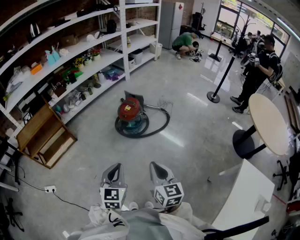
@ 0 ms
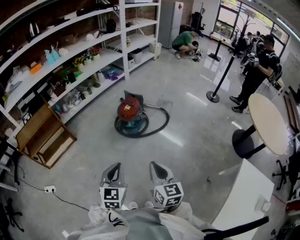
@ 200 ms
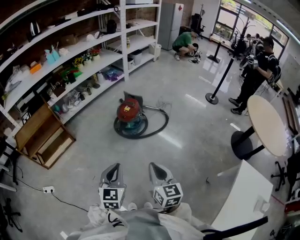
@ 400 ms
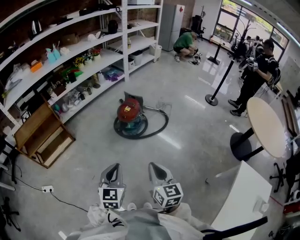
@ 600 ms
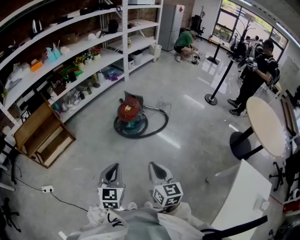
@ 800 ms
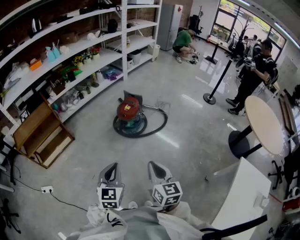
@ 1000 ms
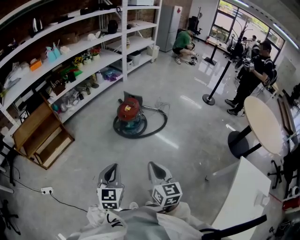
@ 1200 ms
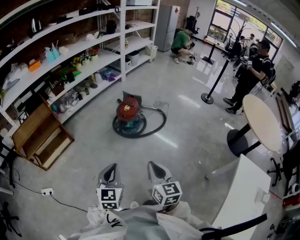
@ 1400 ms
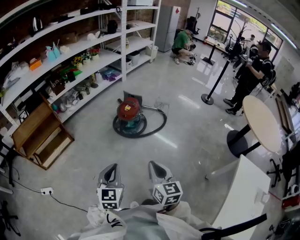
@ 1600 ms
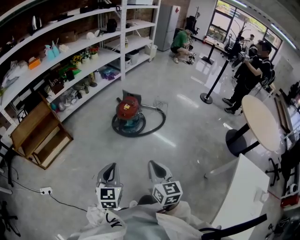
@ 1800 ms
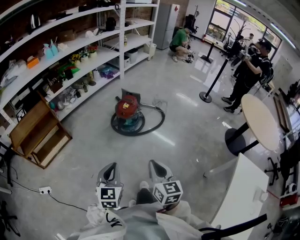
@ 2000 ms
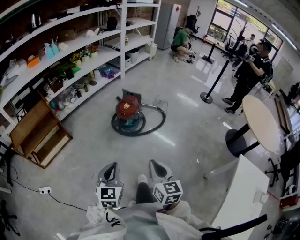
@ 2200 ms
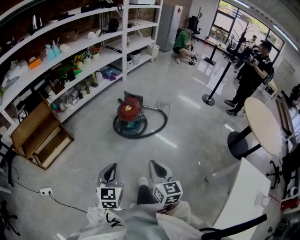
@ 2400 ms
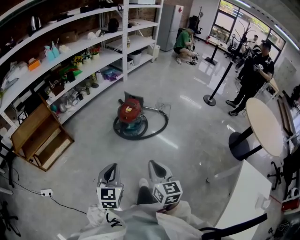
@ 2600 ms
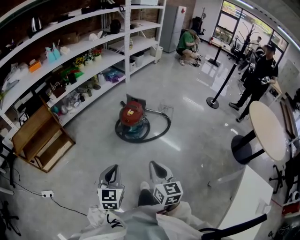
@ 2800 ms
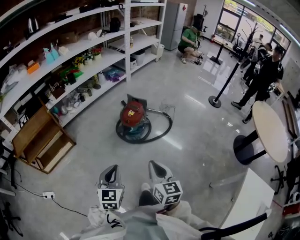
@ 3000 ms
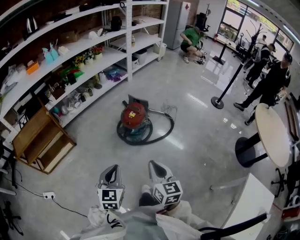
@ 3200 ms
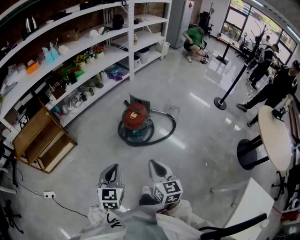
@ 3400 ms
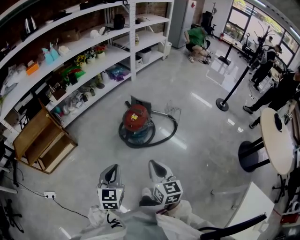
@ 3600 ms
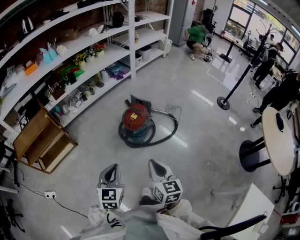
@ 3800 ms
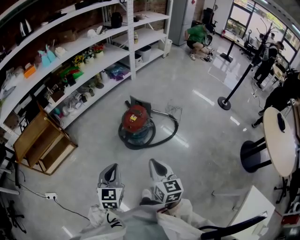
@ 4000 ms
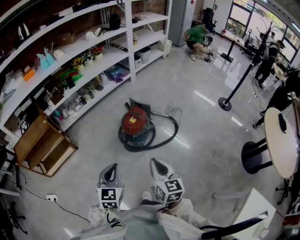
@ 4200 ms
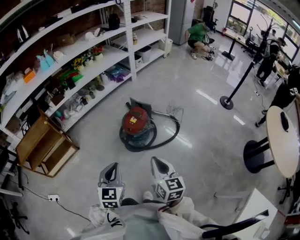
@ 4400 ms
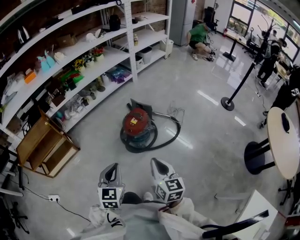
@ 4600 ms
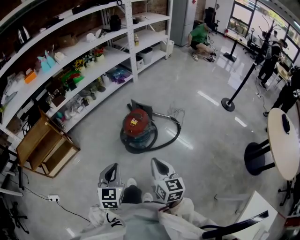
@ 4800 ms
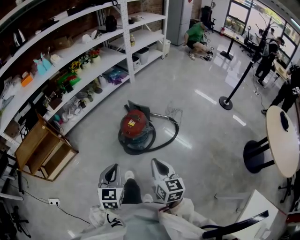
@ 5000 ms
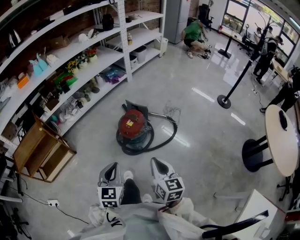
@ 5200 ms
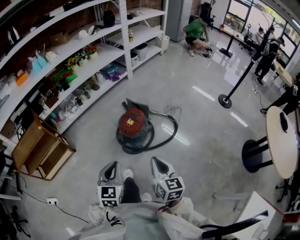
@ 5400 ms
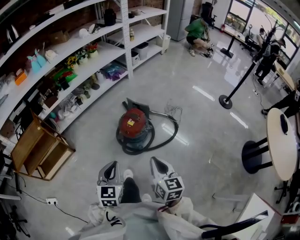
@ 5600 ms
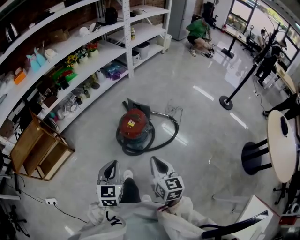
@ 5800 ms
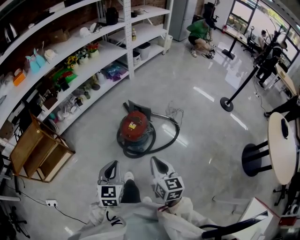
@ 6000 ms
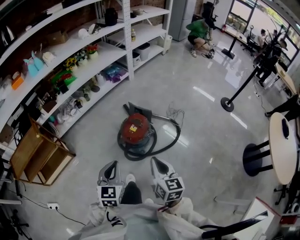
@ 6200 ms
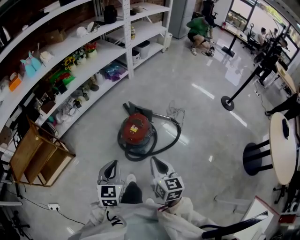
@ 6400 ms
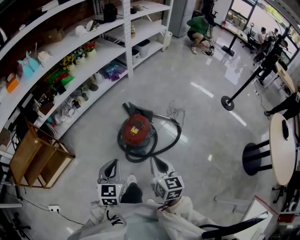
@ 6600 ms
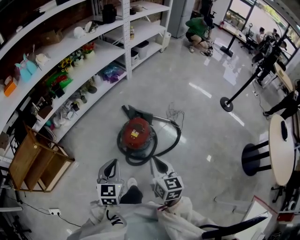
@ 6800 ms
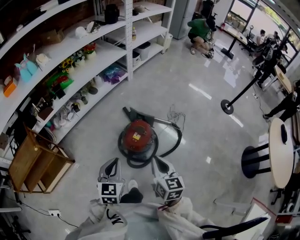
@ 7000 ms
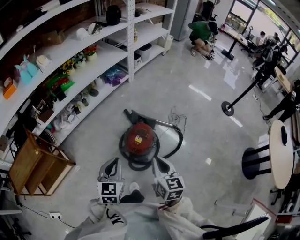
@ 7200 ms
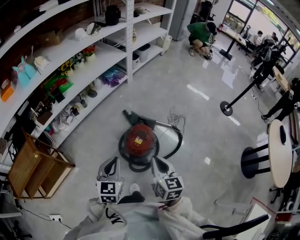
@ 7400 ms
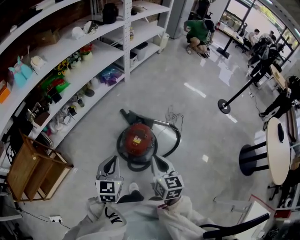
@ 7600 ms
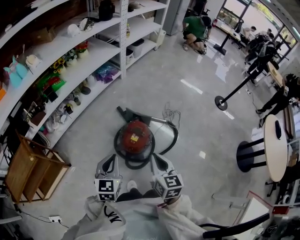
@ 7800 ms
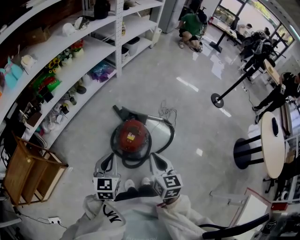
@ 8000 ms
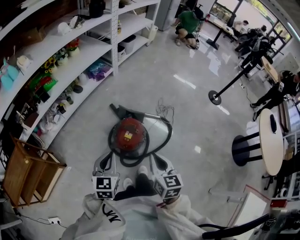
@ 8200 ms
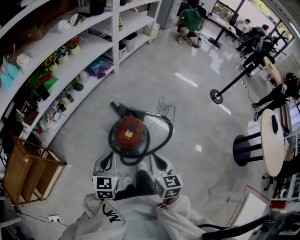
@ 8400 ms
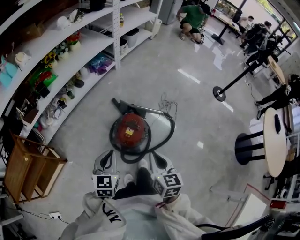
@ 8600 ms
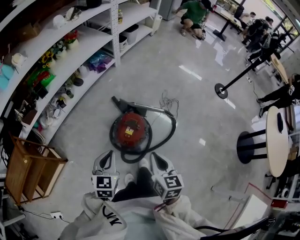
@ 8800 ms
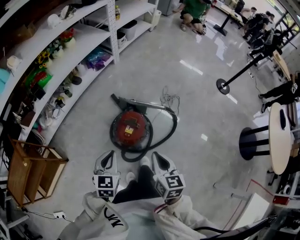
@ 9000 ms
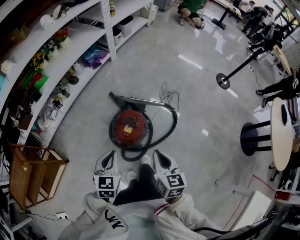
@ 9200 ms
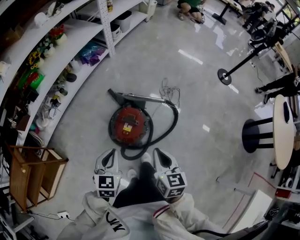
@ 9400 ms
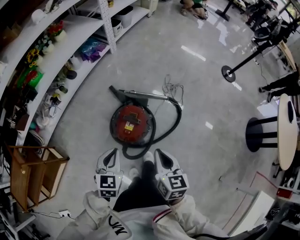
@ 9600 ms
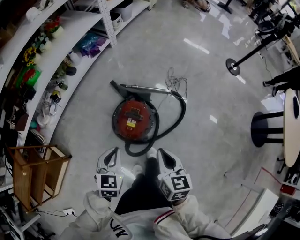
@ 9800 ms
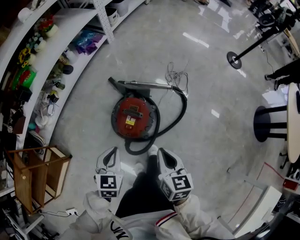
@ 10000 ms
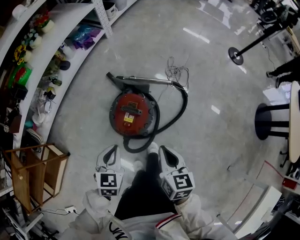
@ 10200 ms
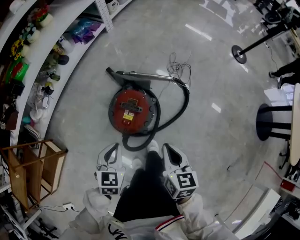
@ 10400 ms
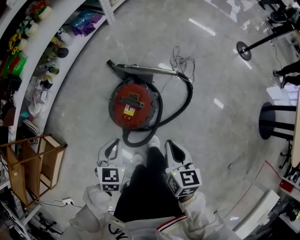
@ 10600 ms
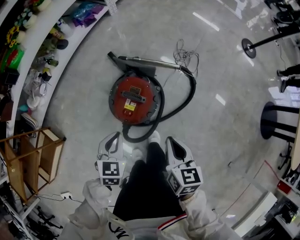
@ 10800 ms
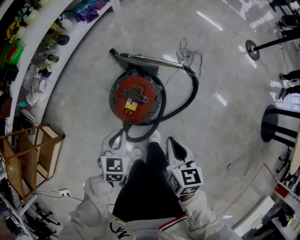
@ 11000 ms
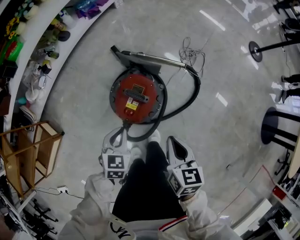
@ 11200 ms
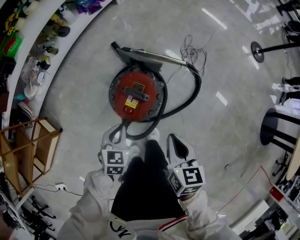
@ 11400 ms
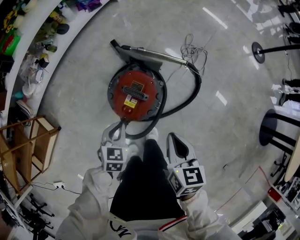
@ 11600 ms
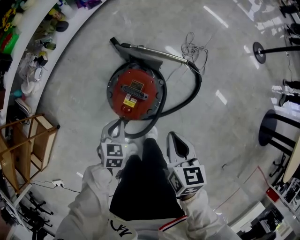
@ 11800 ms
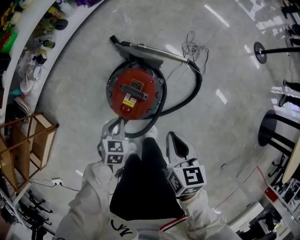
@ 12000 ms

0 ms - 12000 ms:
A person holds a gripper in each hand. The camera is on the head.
0 ms - 1600 ms: Both grippers travel together to the left, approximately 5 cm.
1600 ms - 3000 ms: Both grippers travel together forward, approximately 10 cm.
3000 ms - 4400 ms: The grippers both shift forward and to the right by roughly 15 cm.
4400 ms - 6000 ms: Both grippers move forward, some 10 cm.
6000 ms - 7600 ms: The right gripper heads forward and to the left, covering some 15 cm. The left gripper is displaced forward by roughly 20 cm.
7600 ms - 9000 ms: The right gripper travels downward and to the right by some 5 cm, while the left gripper moves downward, some 5 cm.
9000 ms - 10400 ms: The grippers both shift downward by about 15 cm.
10400 ms - 12000 ms: The right gripper heads downward, covering some 5 cm; the left gripper is displaced downward by about 15 cm.

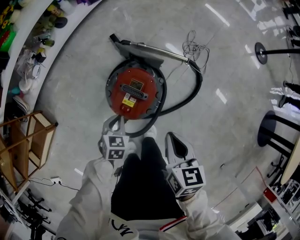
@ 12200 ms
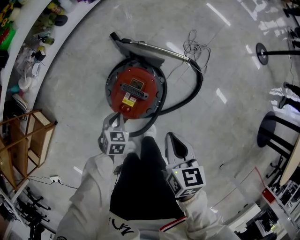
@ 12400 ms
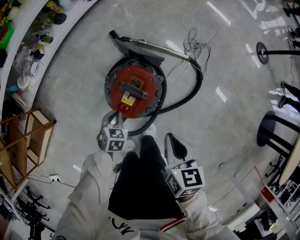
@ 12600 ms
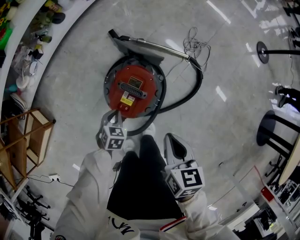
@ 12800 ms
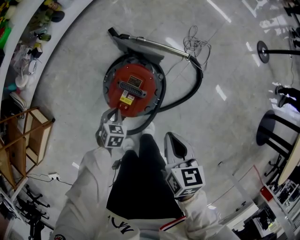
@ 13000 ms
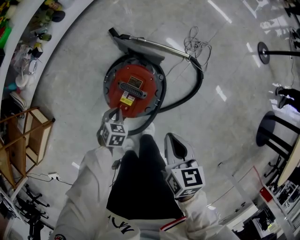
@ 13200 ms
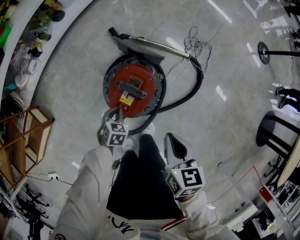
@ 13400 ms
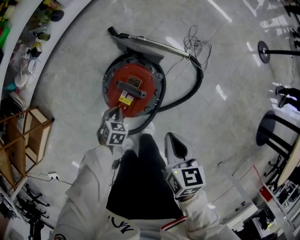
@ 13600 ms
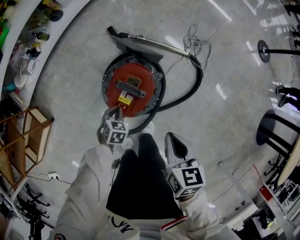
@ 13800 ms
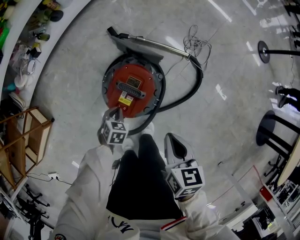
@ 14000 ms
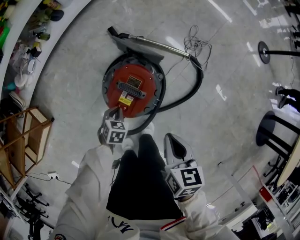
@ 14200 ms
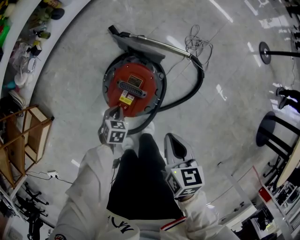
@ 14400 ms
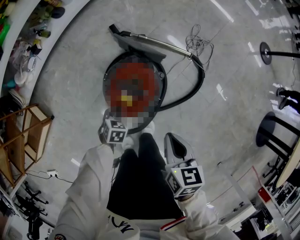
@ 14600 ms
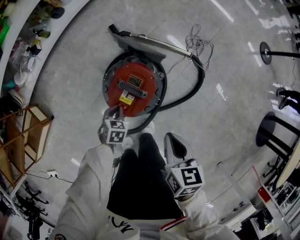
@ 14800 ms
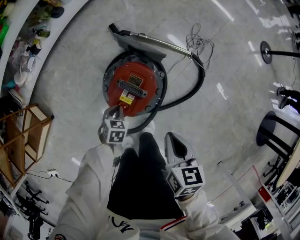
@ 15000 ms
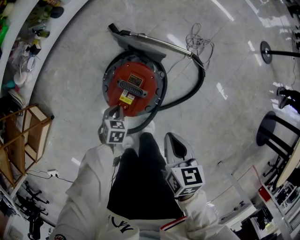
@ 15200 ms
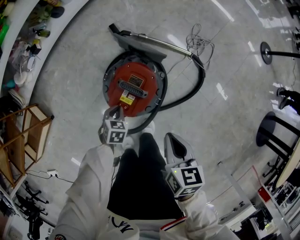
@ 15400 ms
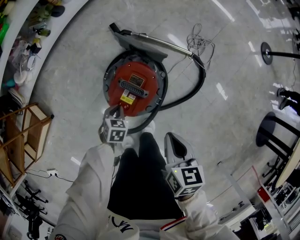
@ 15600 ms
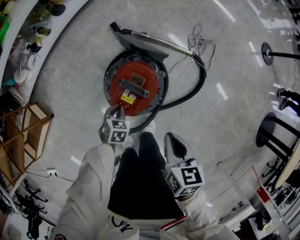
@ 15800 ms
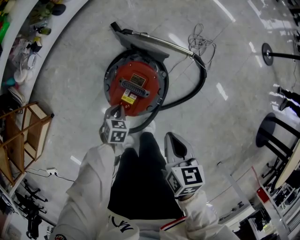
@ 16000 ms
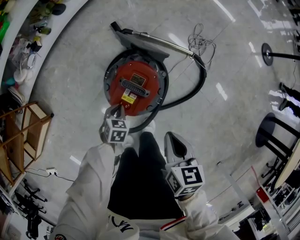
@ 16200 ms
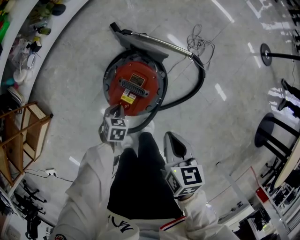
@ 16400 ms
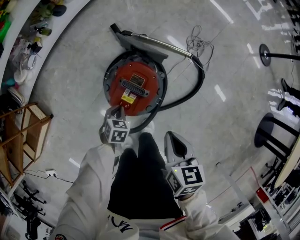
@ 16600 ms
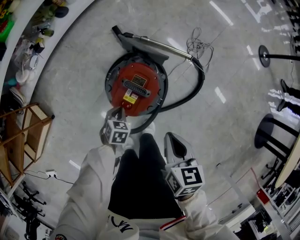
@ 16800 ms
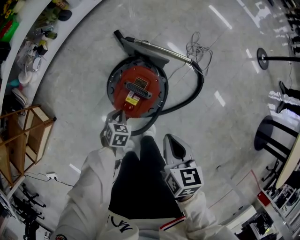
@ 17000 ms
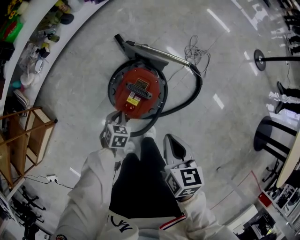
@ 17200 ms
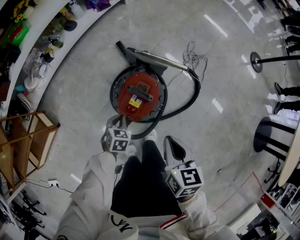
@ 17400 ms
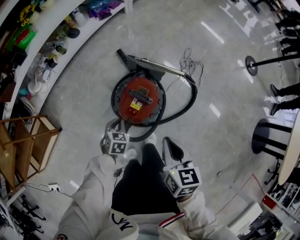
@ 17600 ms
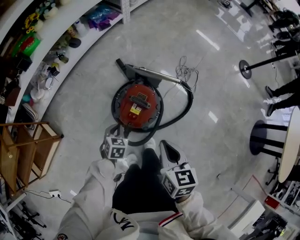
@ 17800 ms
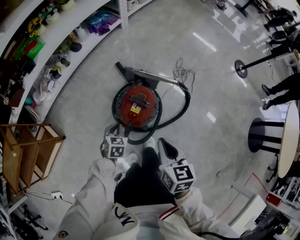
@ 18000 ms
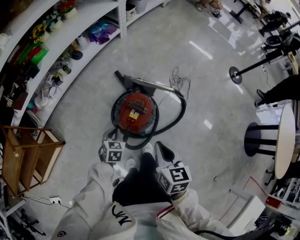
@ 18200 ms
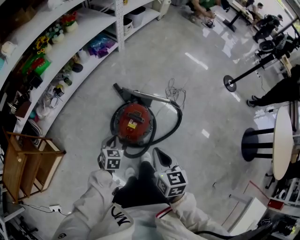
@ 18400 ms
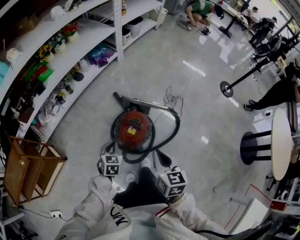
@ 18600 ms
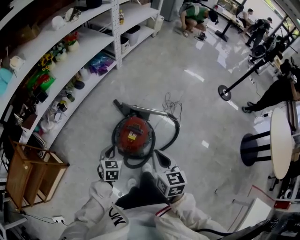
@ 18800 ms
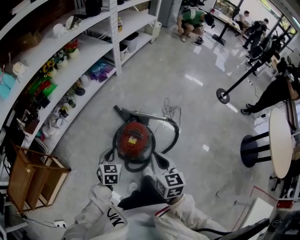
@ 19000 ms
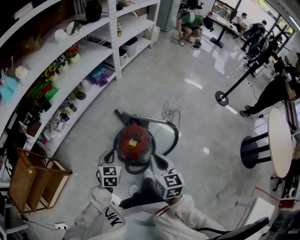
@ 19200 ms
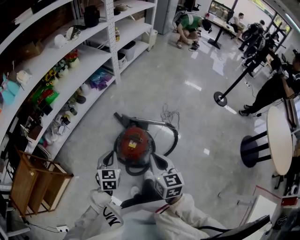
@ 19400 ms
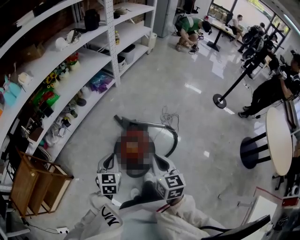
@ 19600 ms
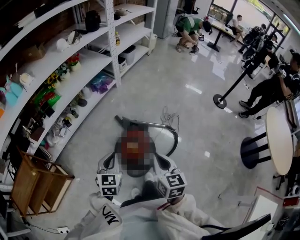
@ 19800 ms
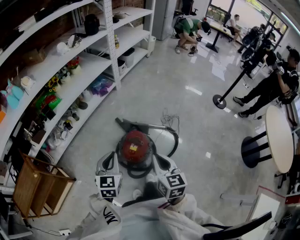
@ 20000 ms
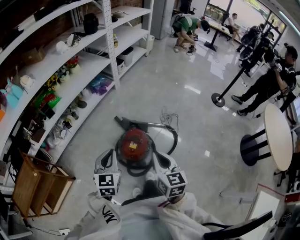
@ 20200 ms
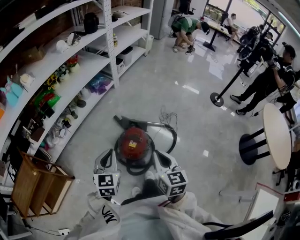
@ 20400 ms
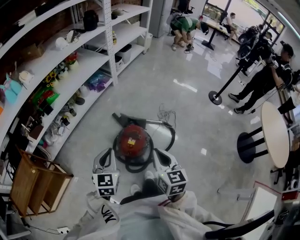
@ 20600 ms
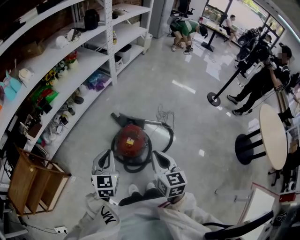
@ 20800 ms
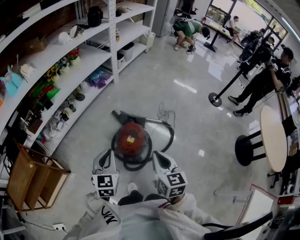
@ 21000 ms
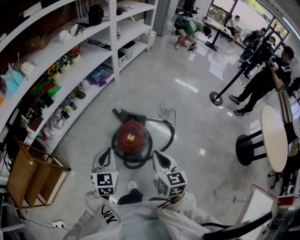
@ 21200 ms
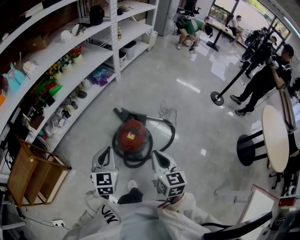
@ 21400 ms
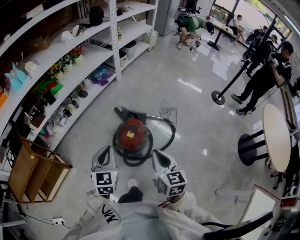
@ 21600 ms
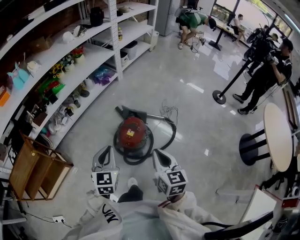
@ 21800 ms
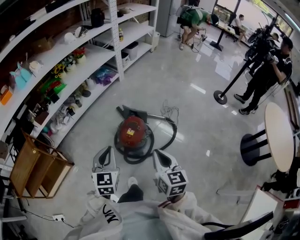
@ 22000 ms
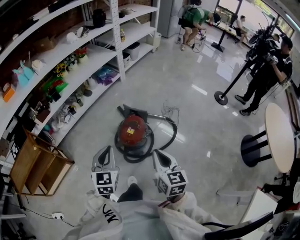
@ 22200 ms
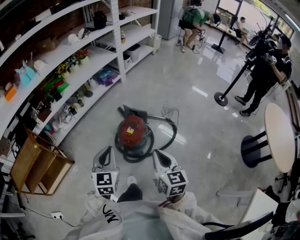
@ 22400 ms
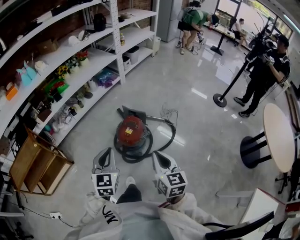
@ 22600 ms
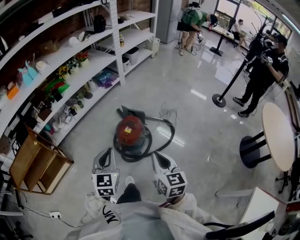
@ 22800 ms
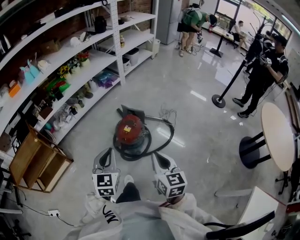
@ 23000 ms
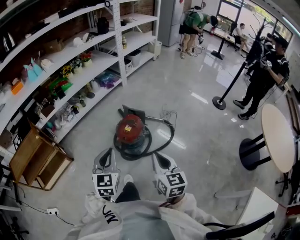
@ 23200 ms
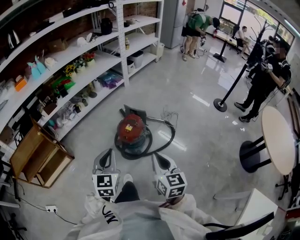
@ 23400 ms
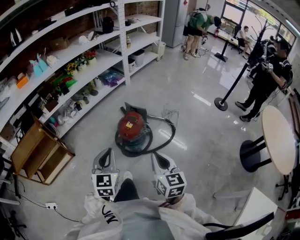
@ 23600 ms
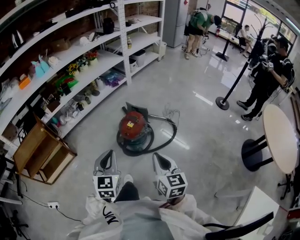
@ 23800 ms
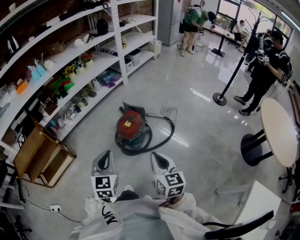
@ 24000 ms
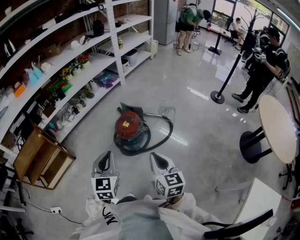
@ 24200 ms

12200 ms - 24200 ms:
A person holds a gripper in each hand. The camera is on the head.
12200 ms - 13800 ms: The left gripper goes roughly 10 cm downward.
13800 ms - 15200 ms: The grippers move only a little.
15200 ms - 16600 ms: Both grippers stay about where they are.
16600 ms - 18200 ms: The left gripper moves upward, approximately 20 cm. The right gripper travels upward and to the left by roughly 15 cm.
18200 ms - 19800 ms: The right gripper moves upward, roughly 15 cm. The left gripper is displaced upward by approximately 25 cm, and changes its angle by some 30 degrees.
19800 ms - 21200 ms: The left gripper changes place by roughly 5 cm.
21200 ms - 22600 ms: Both grippers move backward, roughly 10 cm.
22600 ms - 24200 ms: Both grippers travel together backward, approximately 10 cm.
